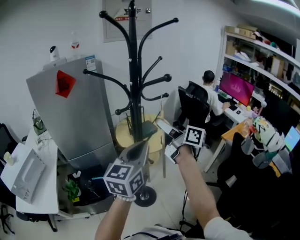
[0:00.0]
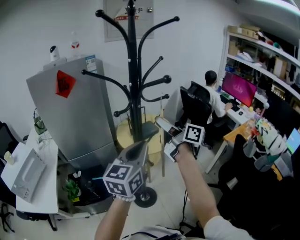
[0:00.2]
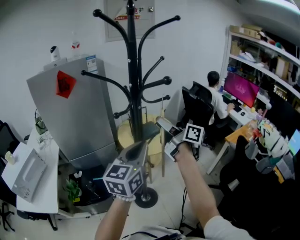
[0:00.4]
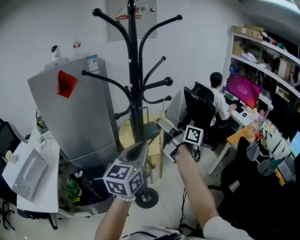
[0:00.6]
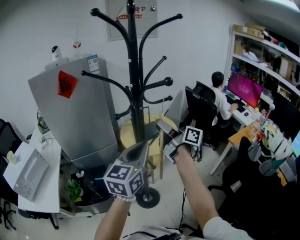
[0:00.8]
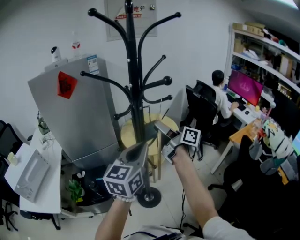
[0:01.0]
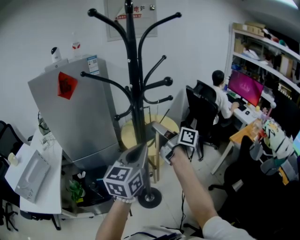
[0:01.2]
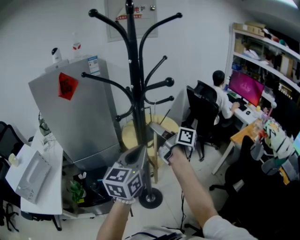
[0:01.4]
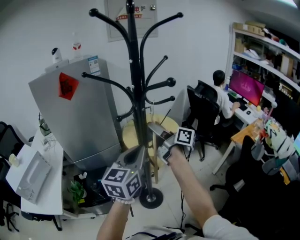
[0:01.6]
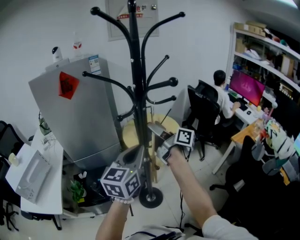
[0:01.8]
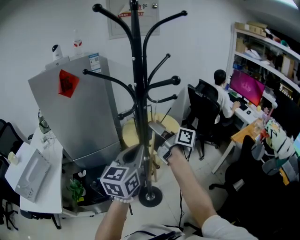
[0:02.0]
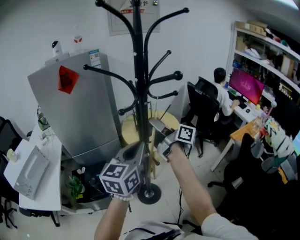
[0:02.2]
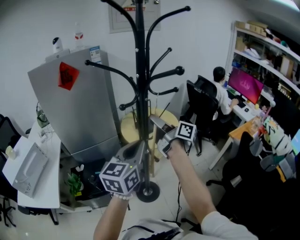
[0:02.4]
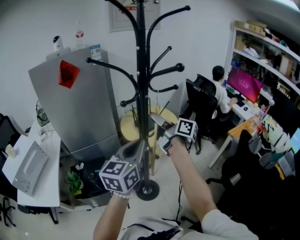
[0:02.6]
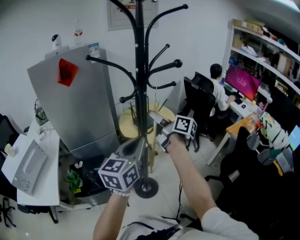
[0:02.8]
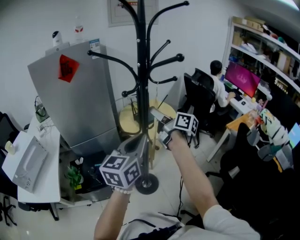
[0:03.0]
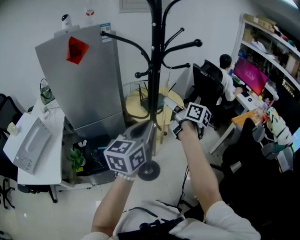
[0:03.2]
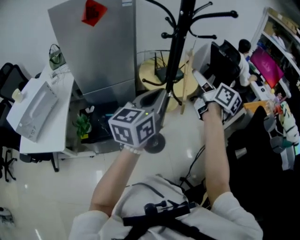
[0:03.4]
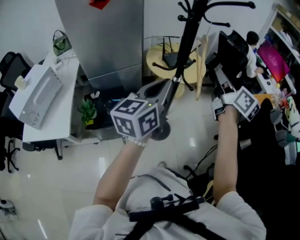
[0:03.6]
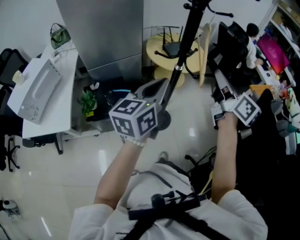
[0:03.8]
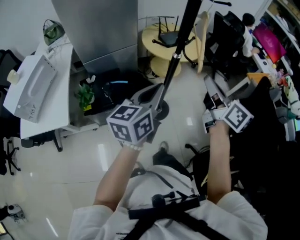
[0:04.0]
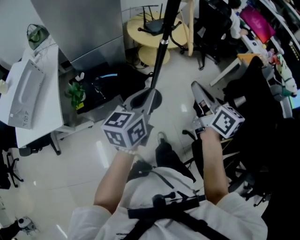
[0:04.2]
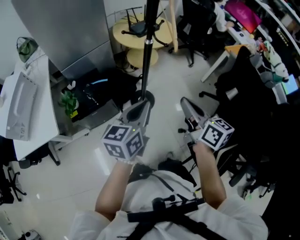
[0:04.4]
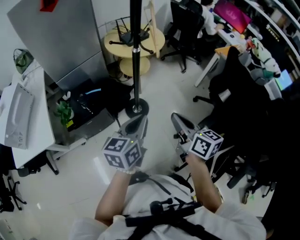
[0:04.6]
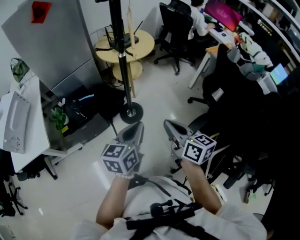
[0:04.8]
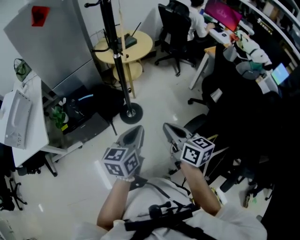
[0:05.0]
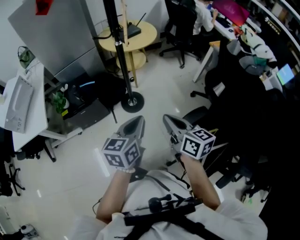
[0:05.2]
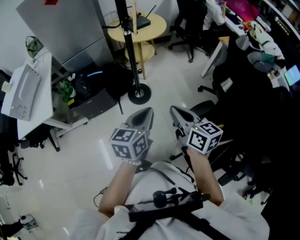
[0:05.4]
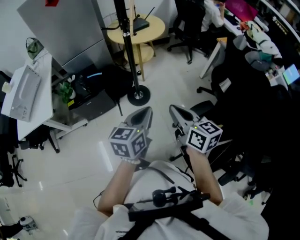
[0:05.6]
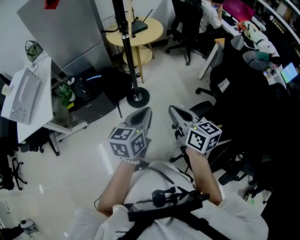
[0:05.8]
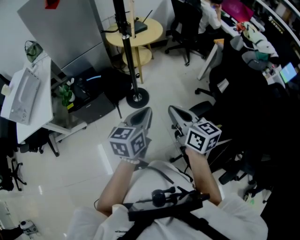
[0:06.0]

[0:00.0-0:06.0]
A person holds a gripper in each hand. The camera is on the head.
0:00.0 to 0:01.6: The left gripper shifts by some 5 cm. Meanwhile the right gripper moves forward, roughly 5 cm.
0:01.6 to 0:03.0: The grippers stay close to where they were, moving slightly.
0:03.0 to 0:04.4: The left gripper travels backward and downward by some 25 cm. The right gripper is displaced backward by roughly 35 cm, swivels roughly 30 degrees, and closes.
0:04.4 to 0:06.0: The left gripper shifts some 20 cm to the right and backward. Meanwhile the right gripper goes approximately 20 cm backward and to the right.

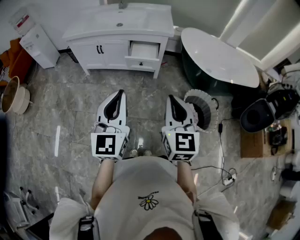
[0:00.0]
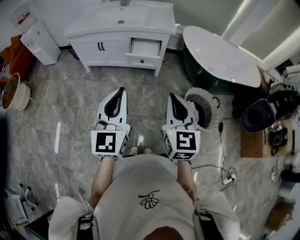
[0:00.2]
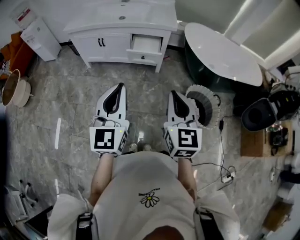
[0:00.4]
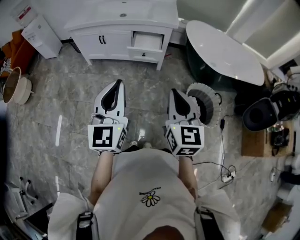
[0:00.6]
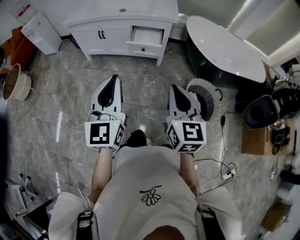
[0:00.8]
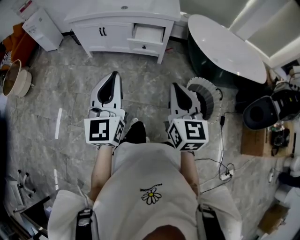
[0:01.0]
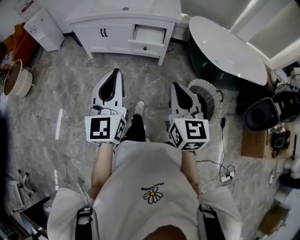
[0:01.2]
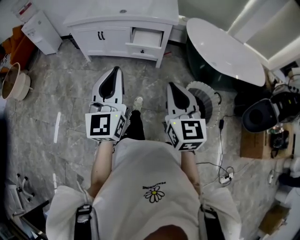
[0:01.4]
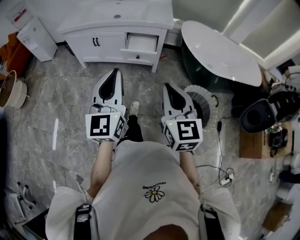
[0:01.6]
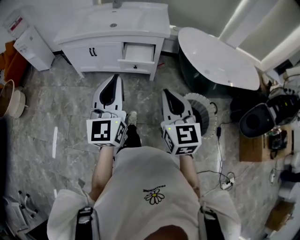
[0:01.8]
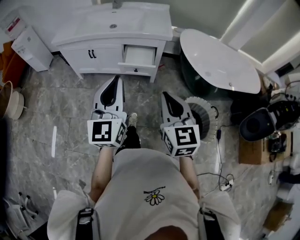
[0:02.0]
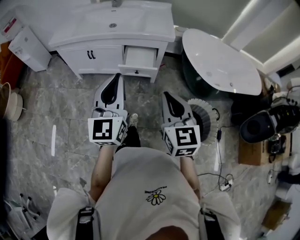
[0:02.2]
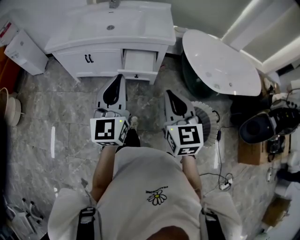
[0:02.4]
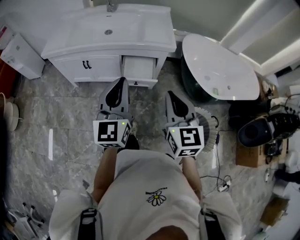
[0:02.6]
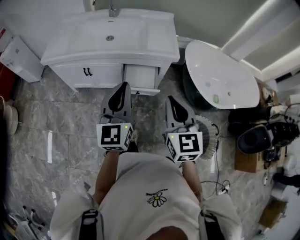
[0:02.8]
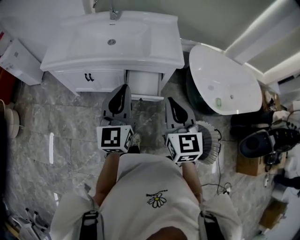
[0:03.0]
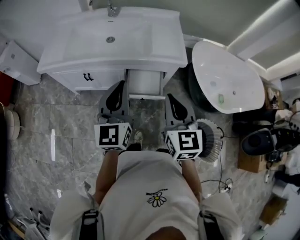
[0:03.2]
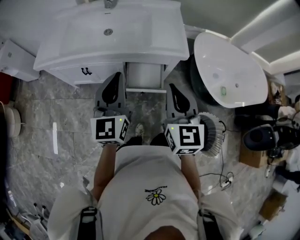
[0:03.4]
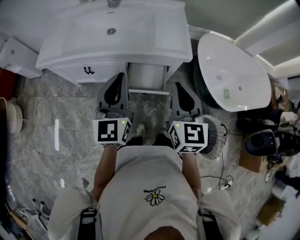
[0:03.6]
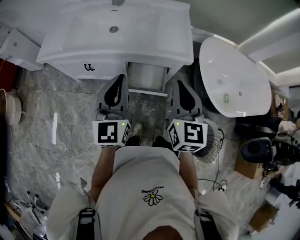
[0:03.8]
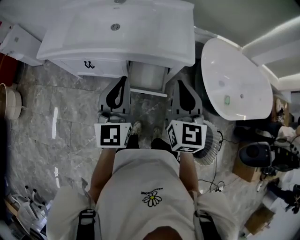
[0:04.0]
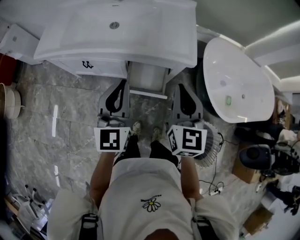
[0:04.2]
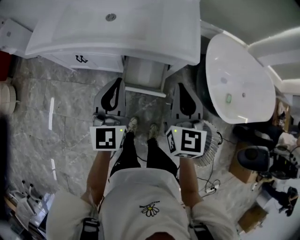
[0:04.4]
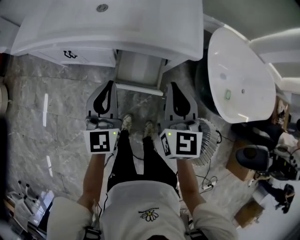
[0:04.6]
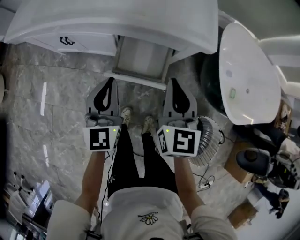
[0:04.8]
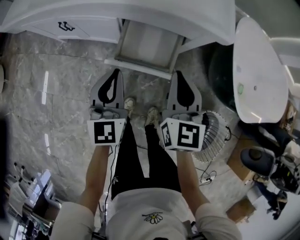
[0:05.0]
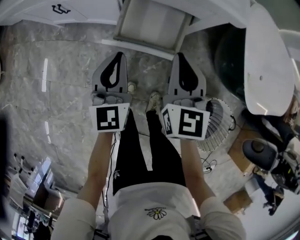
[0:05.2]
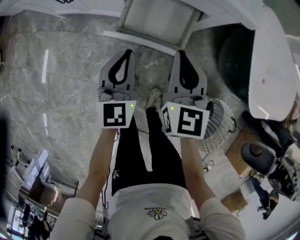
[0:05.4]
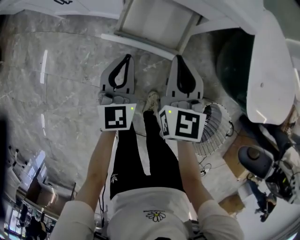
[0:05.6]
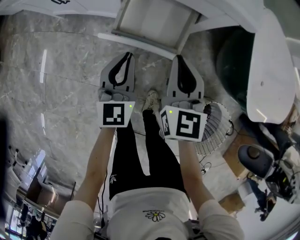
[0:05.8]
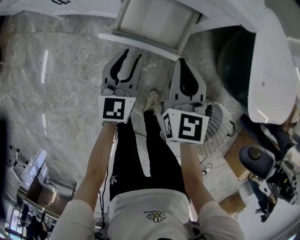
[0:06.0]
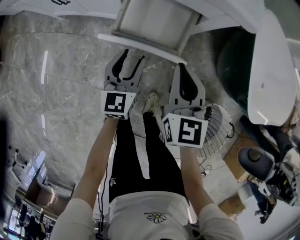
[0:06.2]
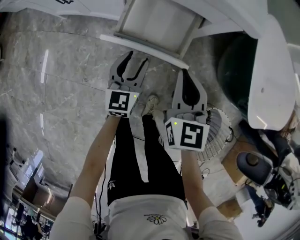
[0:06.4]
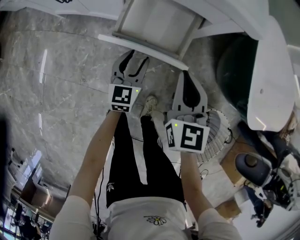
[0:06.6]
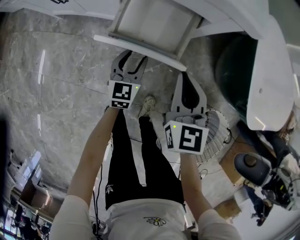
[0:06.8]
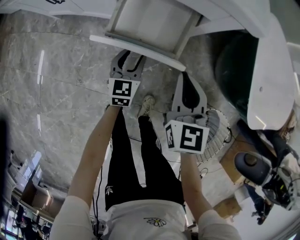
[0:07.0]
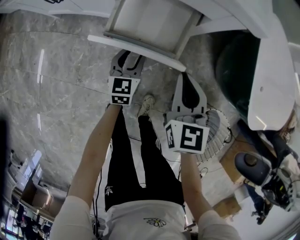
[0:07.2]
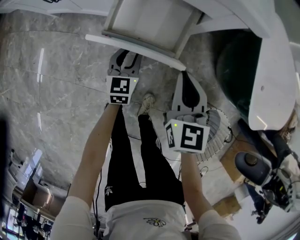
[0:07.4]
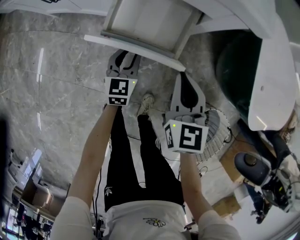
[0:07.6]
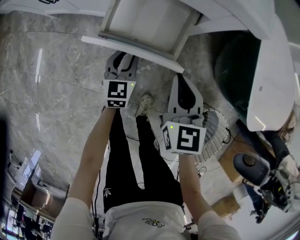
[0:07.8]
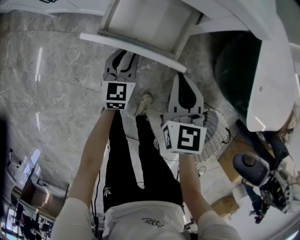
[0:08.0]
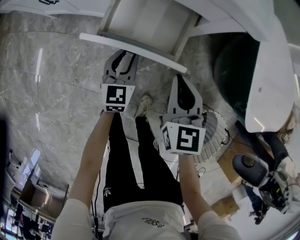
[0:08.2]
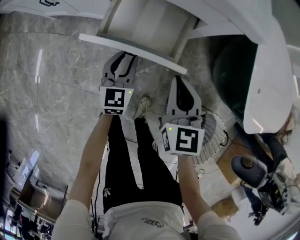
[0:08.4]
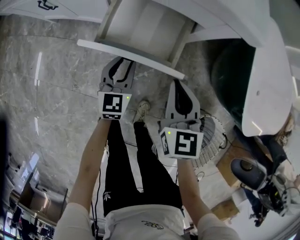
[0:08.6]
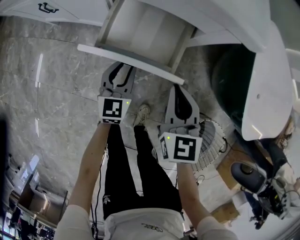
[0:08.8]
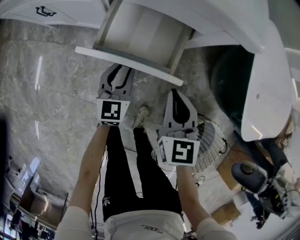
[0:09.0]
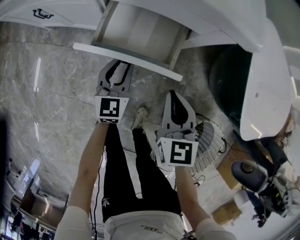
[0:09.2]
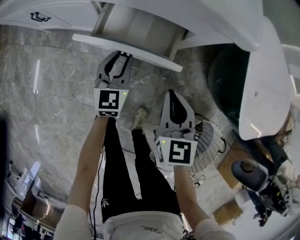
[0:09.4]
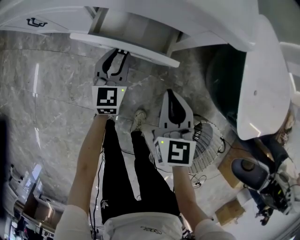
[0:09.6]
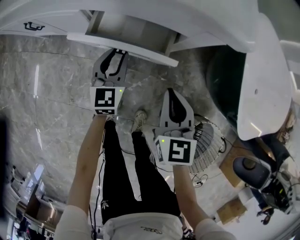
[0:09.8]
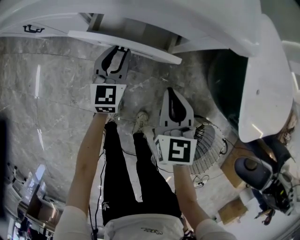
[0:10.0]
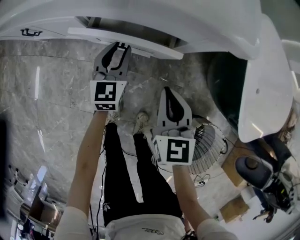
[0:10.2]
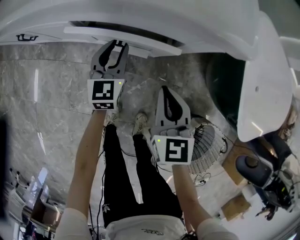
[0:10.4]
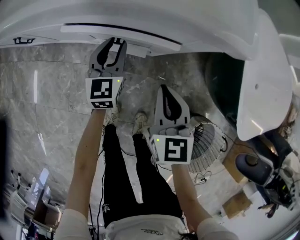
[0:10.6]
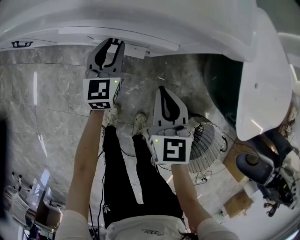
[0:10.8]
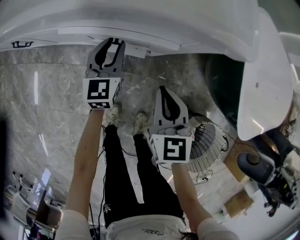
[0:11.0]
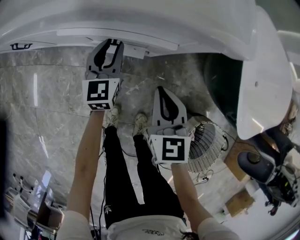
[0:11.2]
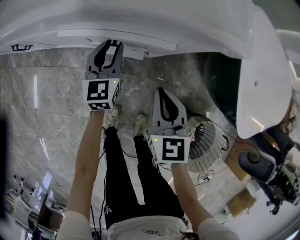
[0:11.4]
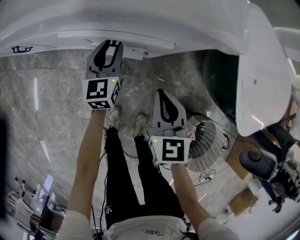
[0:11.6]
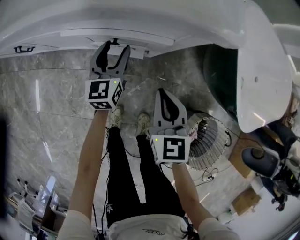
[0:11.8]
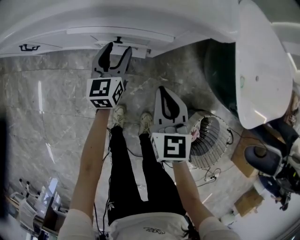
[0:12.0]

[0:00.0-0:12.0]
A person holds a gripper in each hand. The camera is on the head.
0:00.0 to 0:01.6: The left gripper moves forward, about 5 cm. The right gripper ends up some 5 cm from where it was.
0:01.6 to 0:03.0: Both grippers move forward, approximately 35 cm.
0:03.0 to 0:04.4: The two grippers go roughly 15 cm forward and downward.
0:04.4 to 0:06.0: Both grippers move downward, some 30 cm. The left gripper opens its fingers.
0:06.0 to 0:07.6: The right gripper moves downward, some 5 cm; the left gripper shifts about 15 cm downward.
0:07.6 to 0:09.0: The grippers stay close to where they were, moving slightly.
0:09.0 to 0:10.4: The right gripper travels forward by about 5 cm. The left gripper heads forward, covering some 10 cm.
0:10.4 to 0:12.0: The left gripper opens.

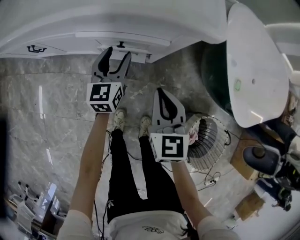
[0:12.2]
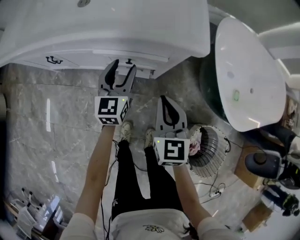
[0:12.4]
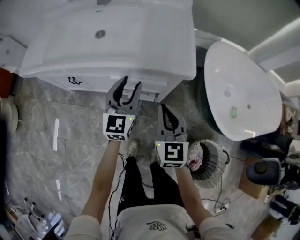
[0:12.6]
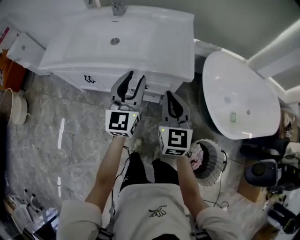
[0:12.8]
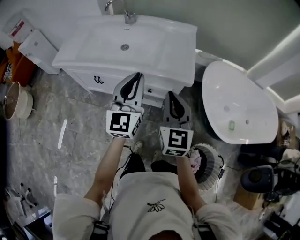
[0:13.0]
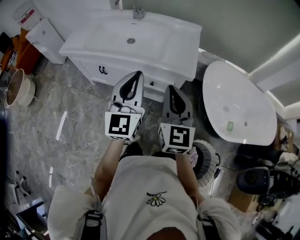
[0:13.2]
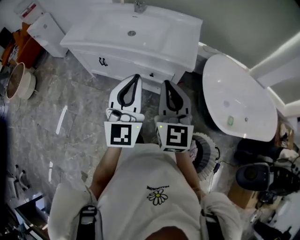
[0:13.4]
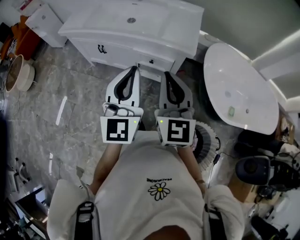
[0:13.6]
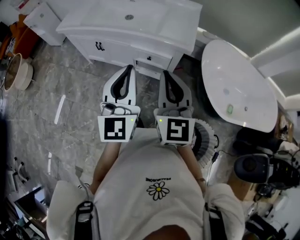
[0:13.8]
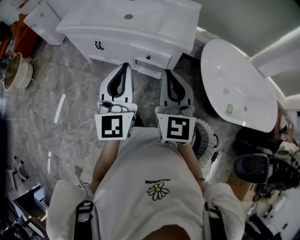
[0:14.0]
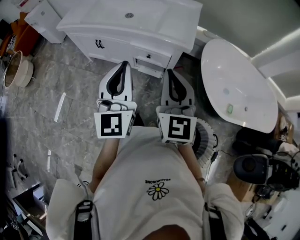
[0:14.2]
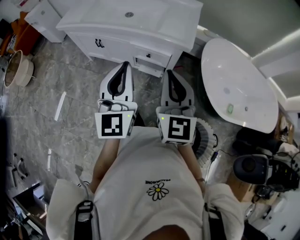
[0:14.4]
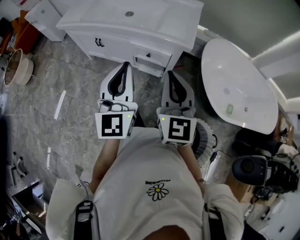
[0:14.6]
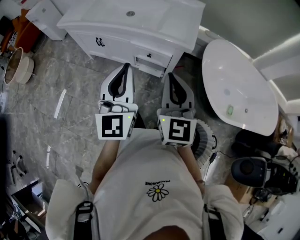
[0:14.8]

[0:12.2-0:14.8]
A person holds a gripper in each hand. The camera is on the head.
0:12.2 to 0:13.4: The left gripper travels upward and backward by roughly 50 cm, rotates roughly 30 degrees, and closes up. The right gripper heads upward, covering roughly 40 cm, and rotates roughly 30 degrees.
0:13.4 to 0:14.8: The right gripper moves roughly 5 cm.

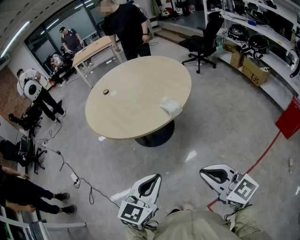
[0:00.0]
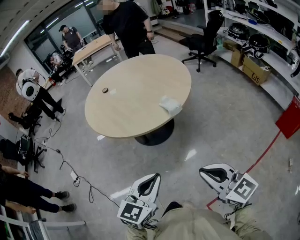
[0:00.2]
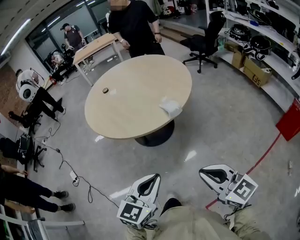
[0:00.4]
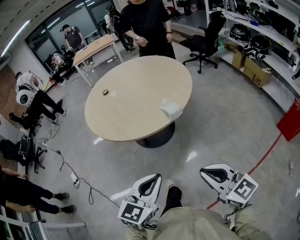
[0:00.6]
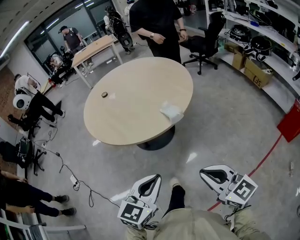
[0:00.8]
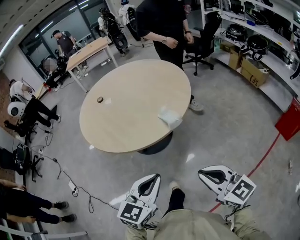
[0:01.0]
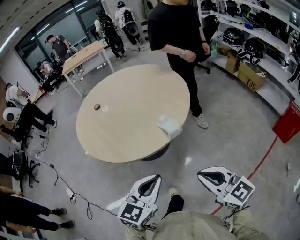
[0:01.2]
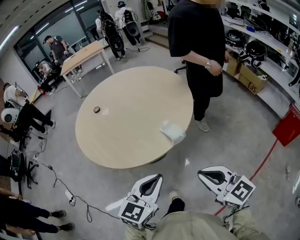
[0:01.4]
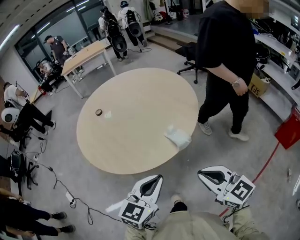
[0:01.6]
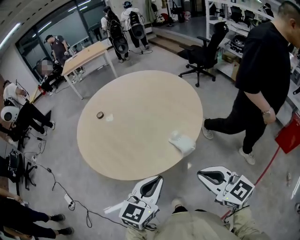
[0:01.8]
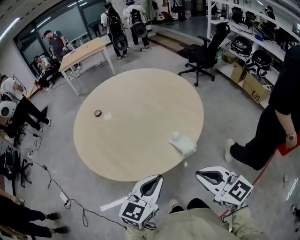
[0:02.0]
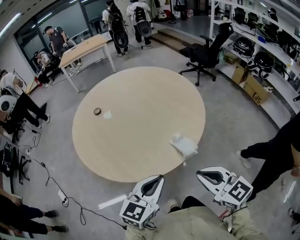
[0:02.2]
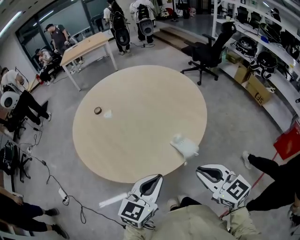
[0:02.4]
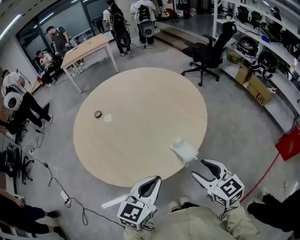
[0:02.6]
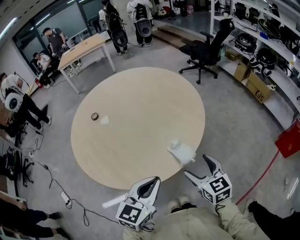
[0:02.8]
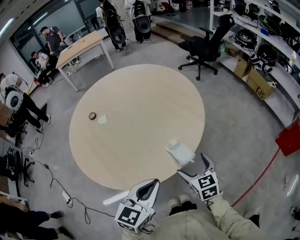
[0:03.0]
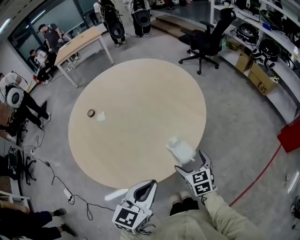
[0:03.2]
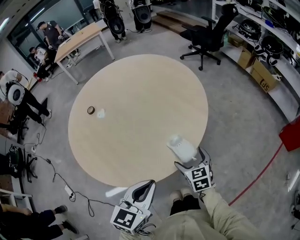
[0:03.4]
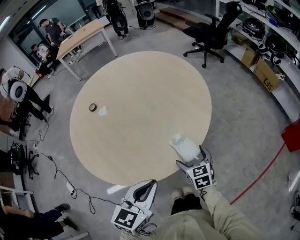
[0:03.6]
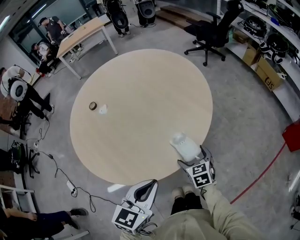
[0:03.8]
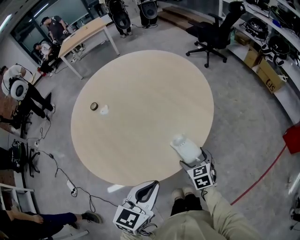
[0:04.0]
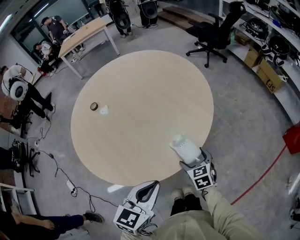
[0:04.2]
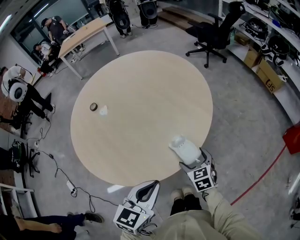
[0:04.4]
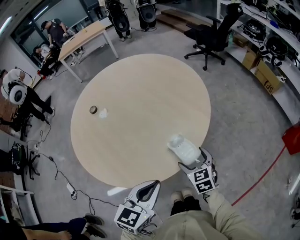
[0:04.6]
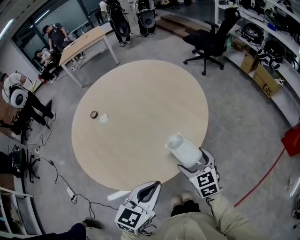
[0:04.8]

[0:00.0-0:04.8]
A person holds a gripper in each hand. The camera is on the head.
0:00.0 to 0:01.6: Both grippers move forward, about 20 cm.
0:01.6 to 0:03.2: The right gripper travels forward and downward by some 30 cm, changes its angle by some 30 degrees, and opens up. Meanwhile the left gripper goes approximately 10 cm forward.
0:03.2 to 0:04.8: The grippers move only a little.
